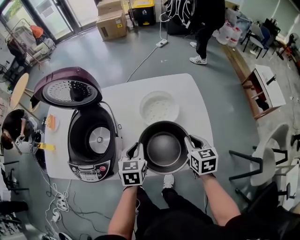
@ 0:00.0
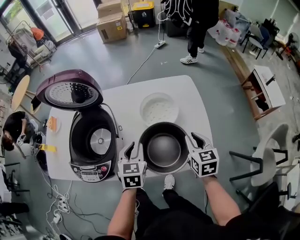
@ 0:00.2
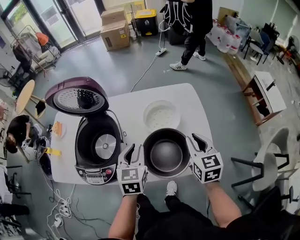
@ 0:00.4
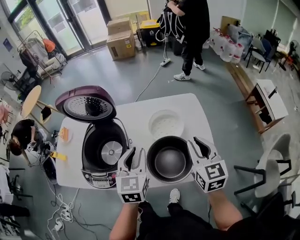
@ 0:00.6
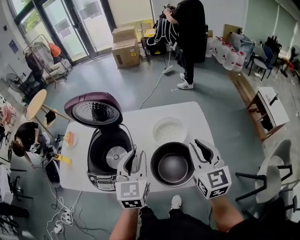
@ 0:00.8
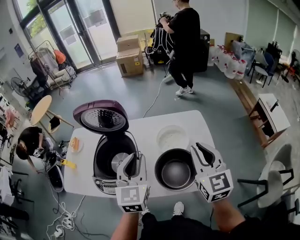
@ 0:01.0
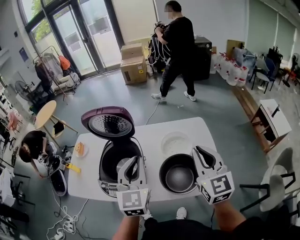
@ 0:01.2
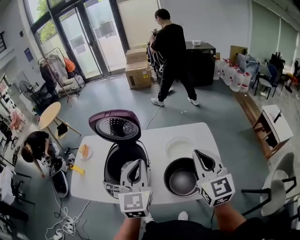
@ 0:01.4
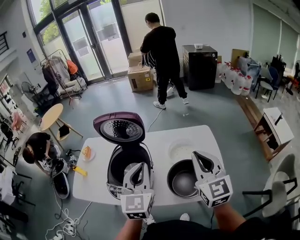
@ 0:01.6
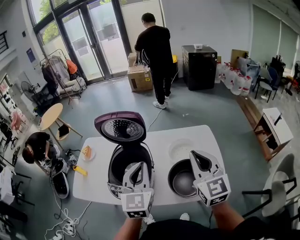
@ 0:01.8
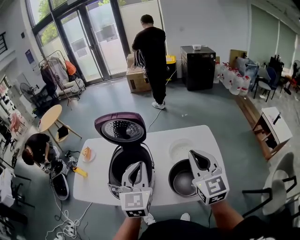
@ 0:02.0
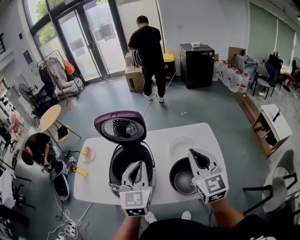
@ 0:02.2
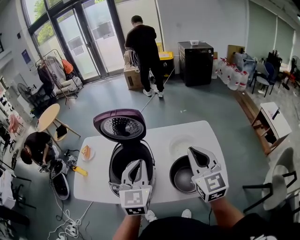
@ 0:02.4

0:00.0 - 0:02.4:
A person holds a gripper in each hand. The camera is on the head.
0:00.0 - 0:01.2: Both grippers move upward, approximately 30 cm. The right gripper tips its fingers upward by some 30 degrees. The left gripper points its fingers approximately 30 degrees further upward.
0:01.2 - 0:02.4: The two grippers go some 5 cm to the left.

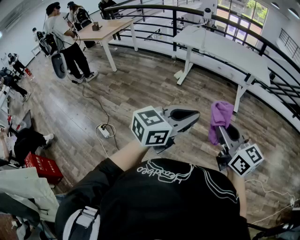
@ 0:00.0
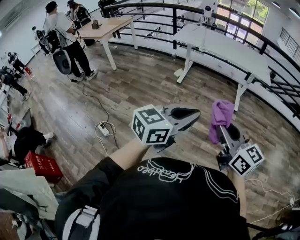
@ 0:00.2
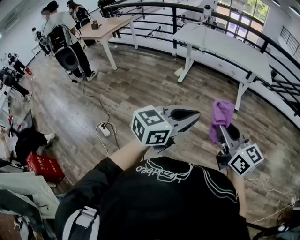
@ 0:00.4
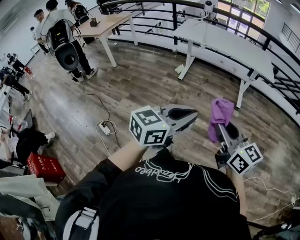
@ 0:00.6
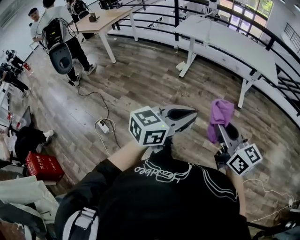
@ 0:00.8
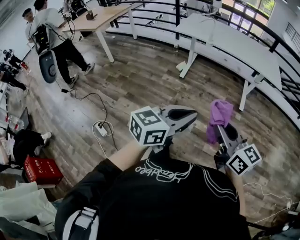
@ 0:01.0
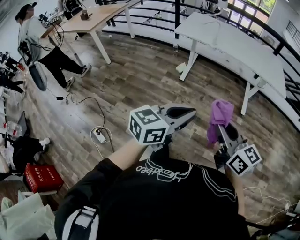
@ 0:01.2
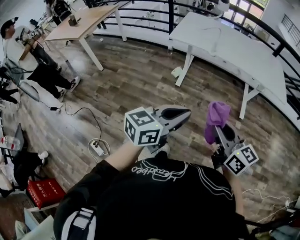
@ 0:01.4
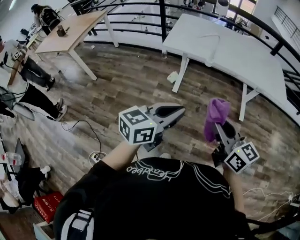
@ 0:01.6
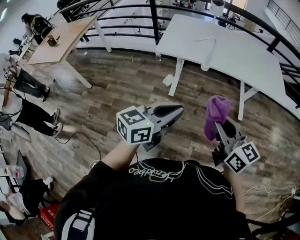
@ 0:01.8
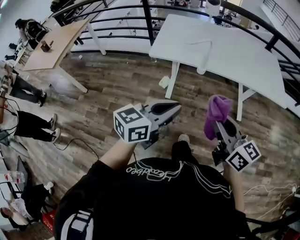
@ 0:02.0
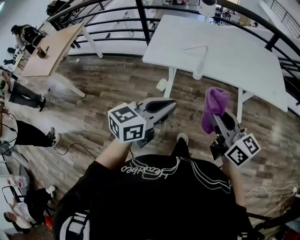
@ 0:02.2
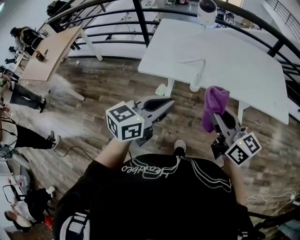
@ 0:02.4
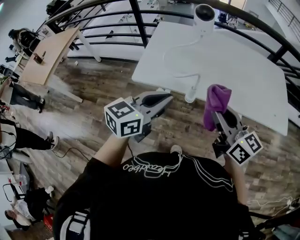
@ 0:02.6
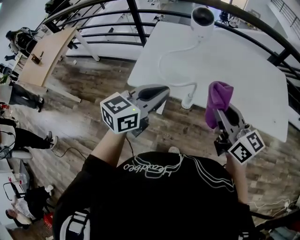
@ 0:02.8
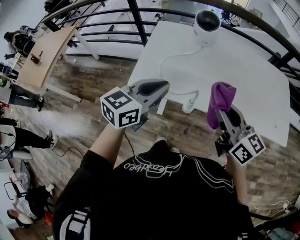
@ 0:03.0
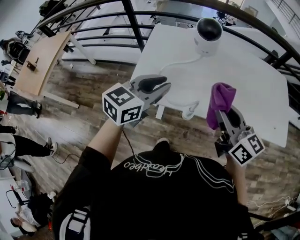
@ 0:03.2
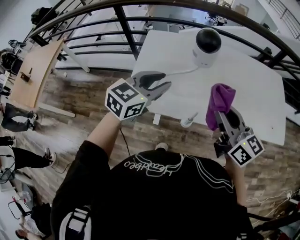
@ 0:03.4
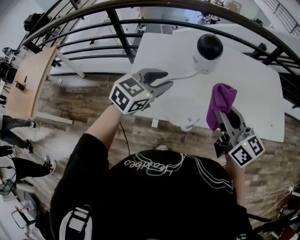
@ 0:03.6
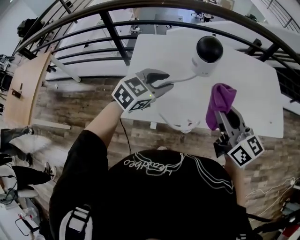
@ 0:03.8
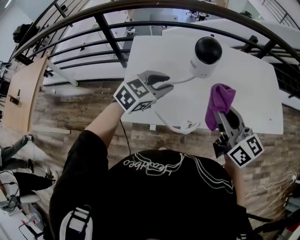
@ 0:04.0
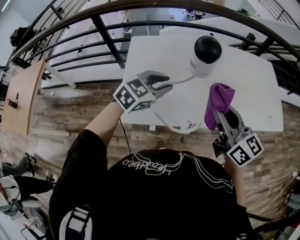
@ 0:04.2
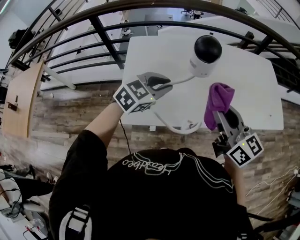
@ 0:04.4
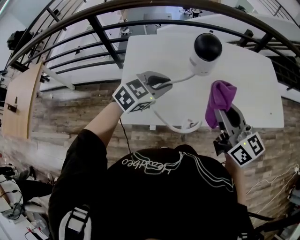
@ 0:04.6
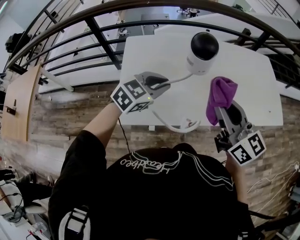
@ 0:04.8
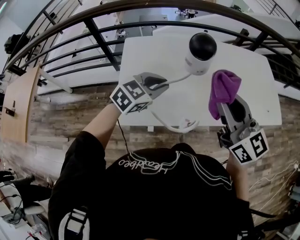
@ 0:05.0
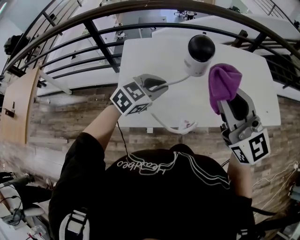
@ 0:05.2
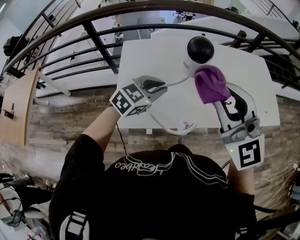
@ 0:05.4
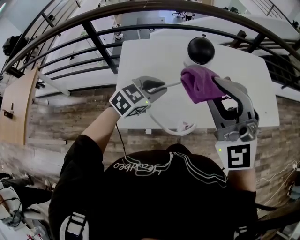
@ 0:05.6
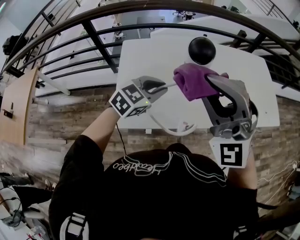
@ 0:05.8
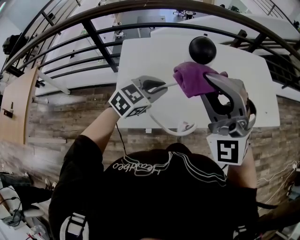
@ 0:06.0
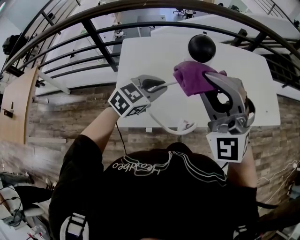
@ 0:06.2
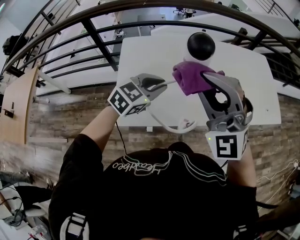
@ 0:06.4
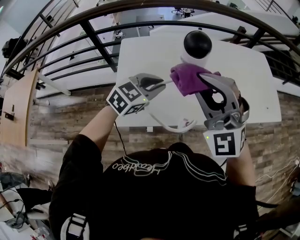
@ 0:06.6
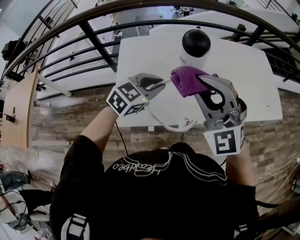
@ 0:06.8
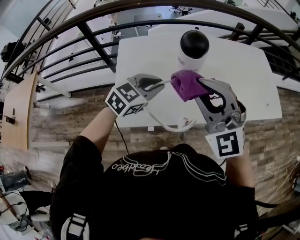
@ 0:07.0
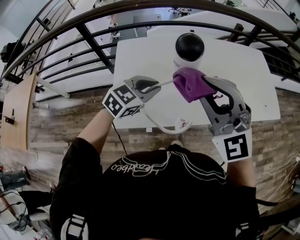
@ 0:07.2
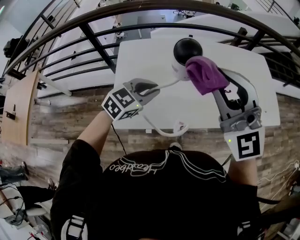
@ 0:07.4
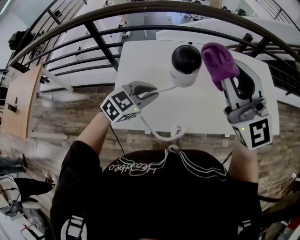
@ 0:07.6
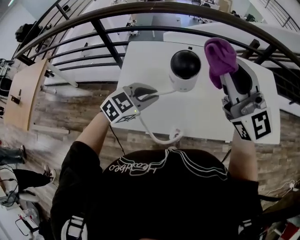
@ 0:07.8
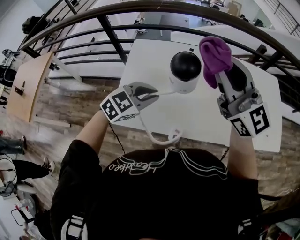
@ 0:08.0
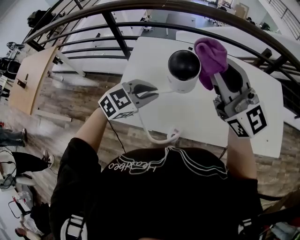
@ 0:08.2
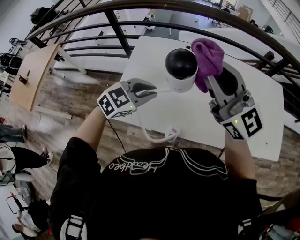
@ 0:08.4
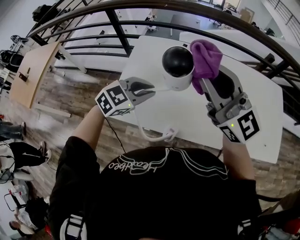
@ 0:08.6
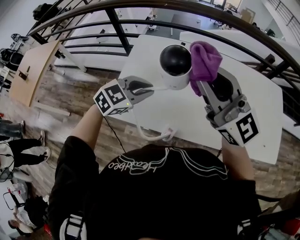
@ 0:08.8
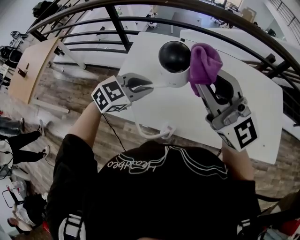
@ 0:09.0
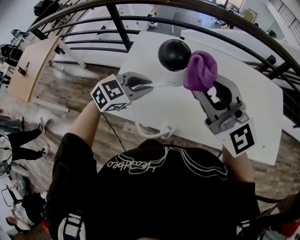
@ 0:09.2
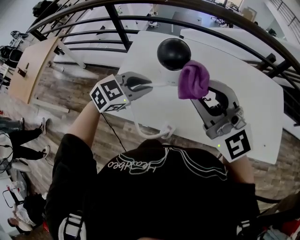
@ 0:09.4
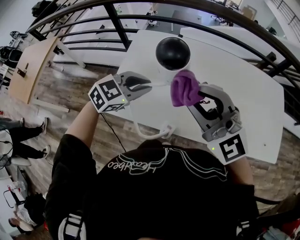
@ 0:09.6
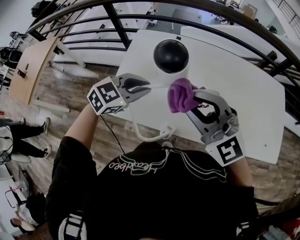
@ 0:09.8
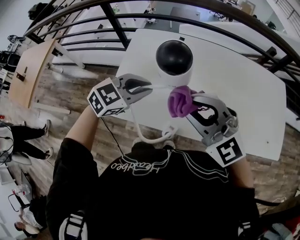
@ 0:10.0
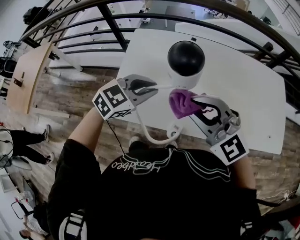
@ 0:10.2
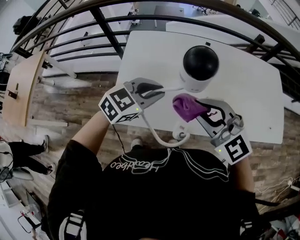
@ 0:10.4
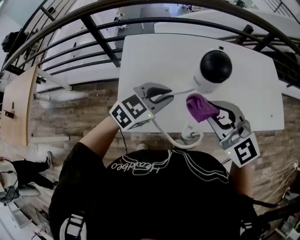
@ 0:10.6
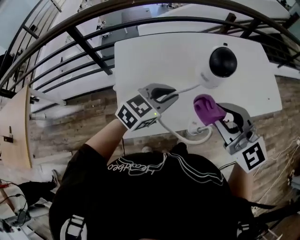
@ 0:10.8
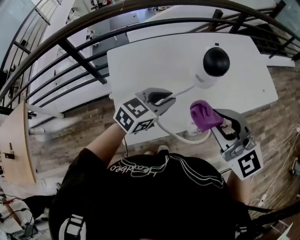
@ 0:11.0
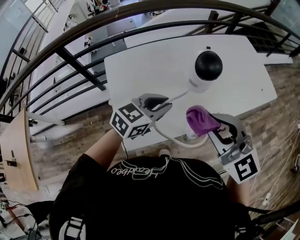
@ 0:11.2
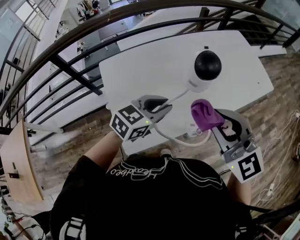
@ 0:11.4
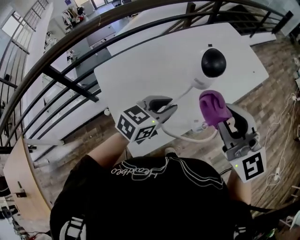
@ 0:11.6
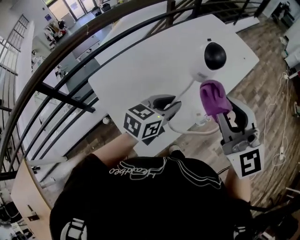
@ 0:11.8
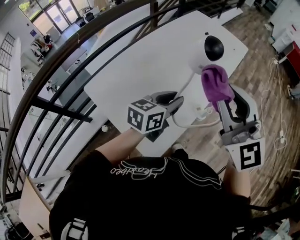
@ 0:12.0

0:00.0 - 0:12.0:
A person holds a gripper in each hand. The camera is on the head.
0:00.0 - 0:01.6: The pair of grippers is taken forward, some 60 cm.
0:01.6 - 0:03.0: Both grippers are carried forward, approximately 50 cm.
0:03.0 - 0:04.4: The left gripper heads forward and downward, covering roughly 20 cm, and rotates about 40 degrees, while the right gripper travels forward by about 10 cm.
0:04.4 - 0:06.0: The right gripper travels upward and to the left by some 10 cm, and twists some 80 degrees counterclockwise, seen from behind.
0:06.0 - 0:07.6: The right gripper moves to the right, forward and upward, about 10 cm, and rotates roughly 40 degrees.
0:07.6 - 0:09.0: The right gripper shifts by about 5 cm, and swivels some 30 degrees.
0:09.0 - 0:10.4: The right gripper moves downward, roughly 15 cm, and rotates roughly 30 degrees.
0:10.4 - 0:12.0: The right gripper travels upward by approximately 10 cm, and changes its angle by about 80 degrees. Meanwhile the left gripper swivels about 40 degrees.

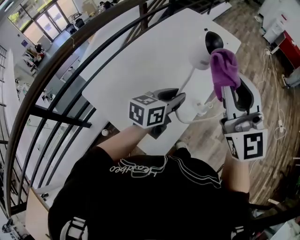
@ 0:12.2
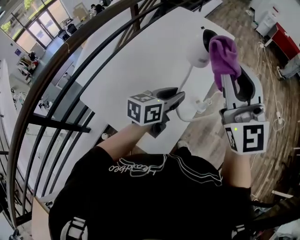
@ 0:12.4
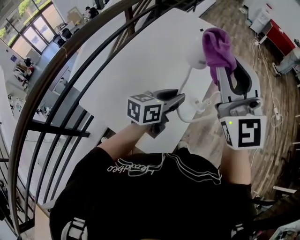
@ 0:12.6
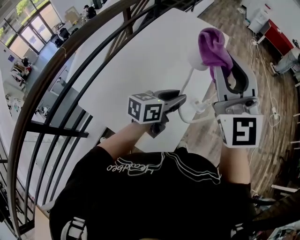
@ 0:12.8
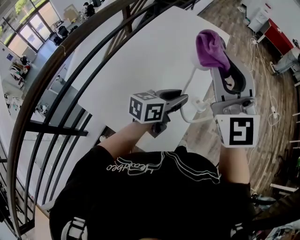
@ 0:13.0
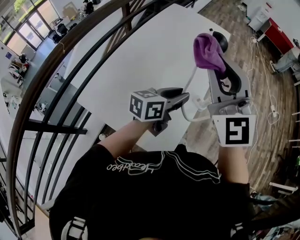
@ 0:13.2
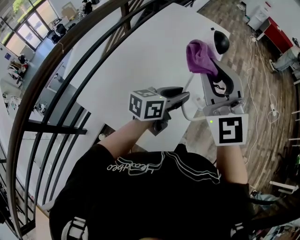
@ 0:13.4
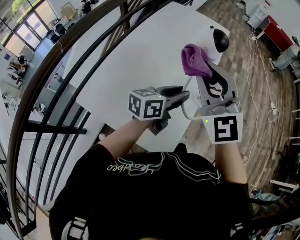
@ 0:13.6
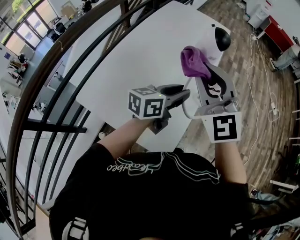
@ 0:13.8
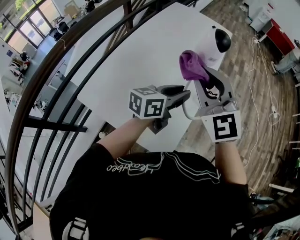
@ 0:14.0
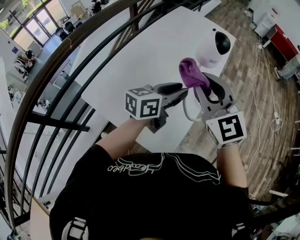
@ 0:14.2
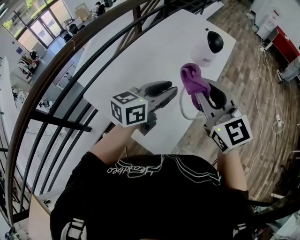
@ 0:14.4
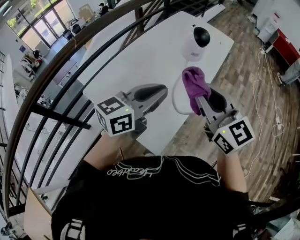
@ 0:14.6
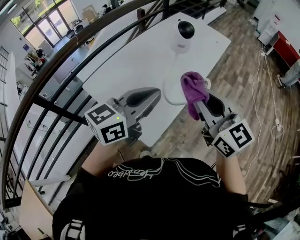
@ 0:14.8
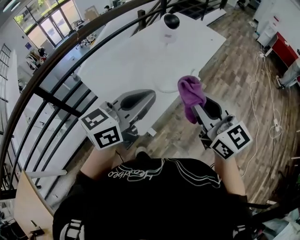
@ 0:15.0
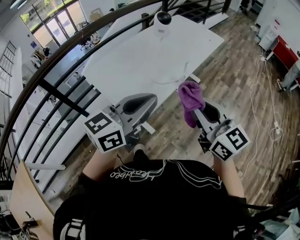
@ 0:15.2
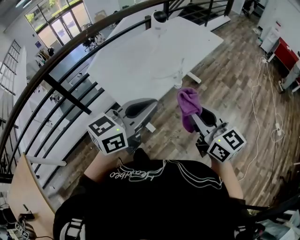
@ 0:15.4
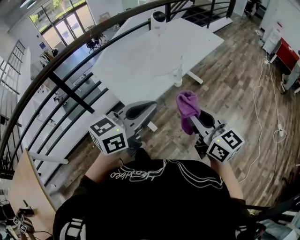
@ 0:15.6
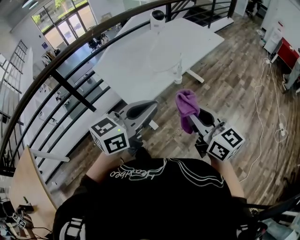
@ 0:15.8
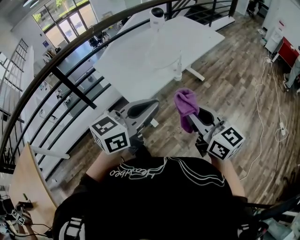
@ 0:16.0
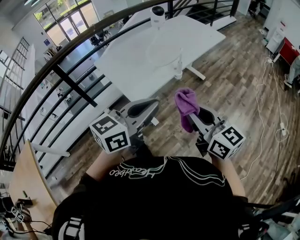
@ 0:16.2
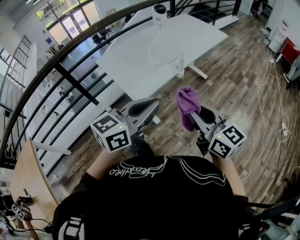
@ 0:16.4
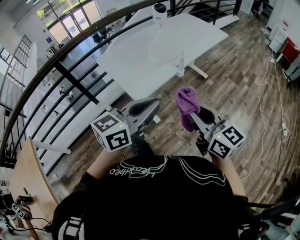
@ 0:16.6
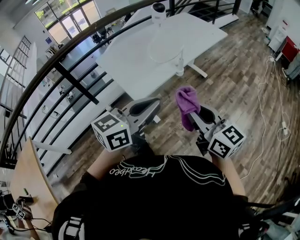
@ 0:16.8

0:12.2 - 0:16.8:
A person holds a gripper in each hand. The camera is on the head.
0:12.2 - 0:13.8: The right gripper goes some 10 cm to the left and downward.
0:13.8 - 0:15.2: The left gripper moves backward and upward, roughly 30 cm, turns by roughly 30 degrees, and closes; the right gripper shifts roughly 35 cm backward and to the right, and swivels about 50 degrees.
0:15.2 - 0:16.8: The left gripper heads backward and to the right, covering roughly 15 cm. Meanwhile the right gripper shifts some 15 cm backward.

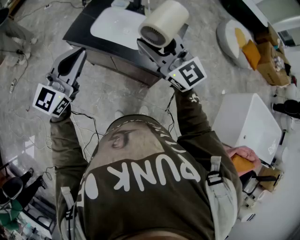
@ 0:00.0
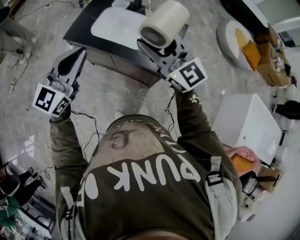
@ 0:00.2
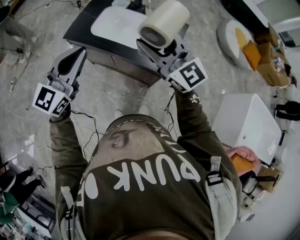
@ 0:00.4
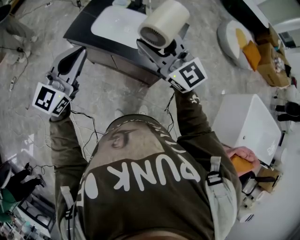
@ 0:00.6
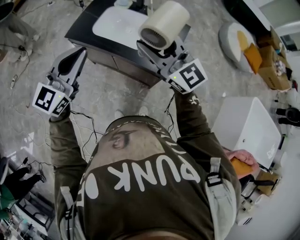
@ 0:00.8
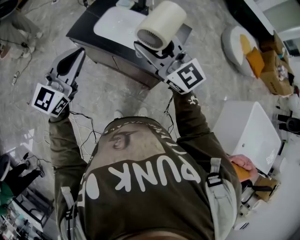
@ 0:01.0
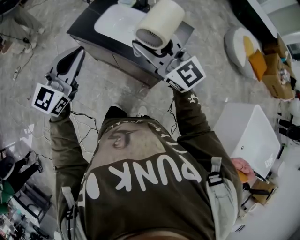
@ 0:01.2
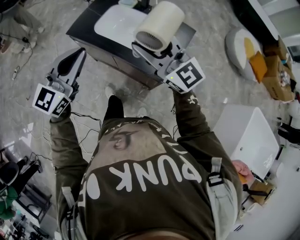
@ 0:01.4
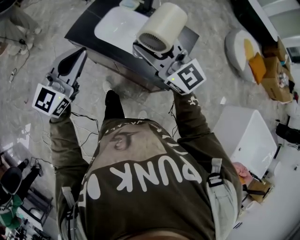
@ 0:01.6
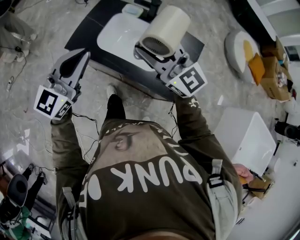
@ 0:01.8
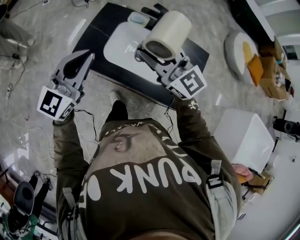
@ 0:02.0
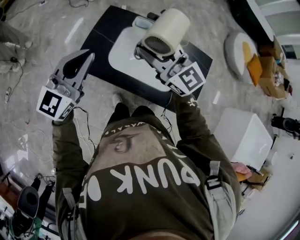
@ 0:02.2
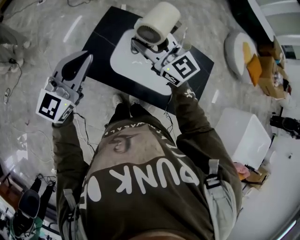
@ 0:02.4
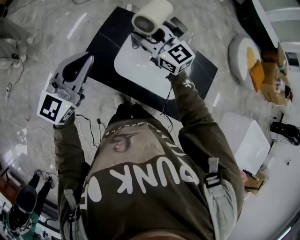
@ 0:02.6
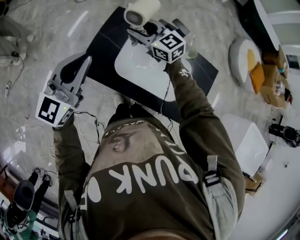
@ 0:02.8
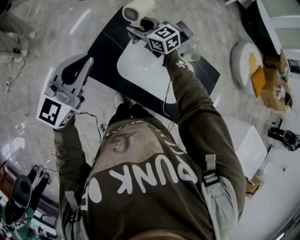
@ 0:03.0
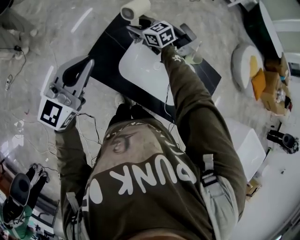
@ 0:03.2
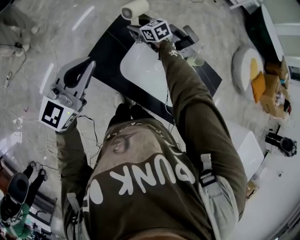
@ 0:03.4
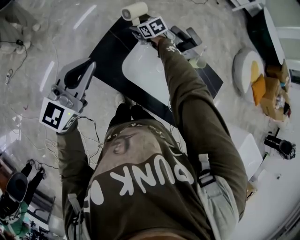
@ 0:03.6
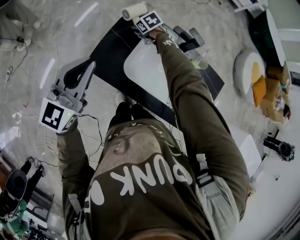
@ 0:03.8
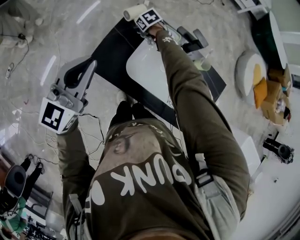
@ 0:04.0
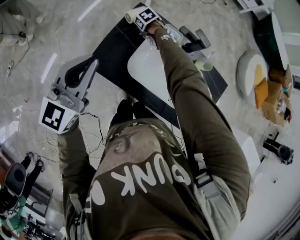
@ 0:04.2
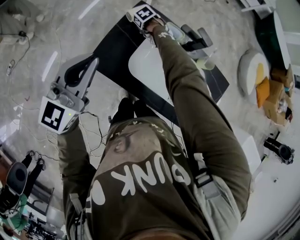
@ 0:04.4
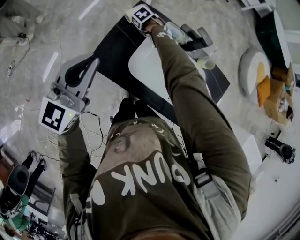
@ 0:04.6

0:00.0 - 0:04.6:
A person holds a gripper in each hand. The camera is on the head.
0:00.0 - 0:01.6: The grippers both shift forward by about 5 cm.
0:01.6 - 0:03.0: The left gripper goes about 35 cm forward and to the left. Meanwhile the right gripper moves forward and downward, roughly 50 cm, and swivels about 30 degrees.
0:03.0 - 0:04.6: The right gripper goes some 25 cm downward, and tips its fingers downward by about 60 degrees.
